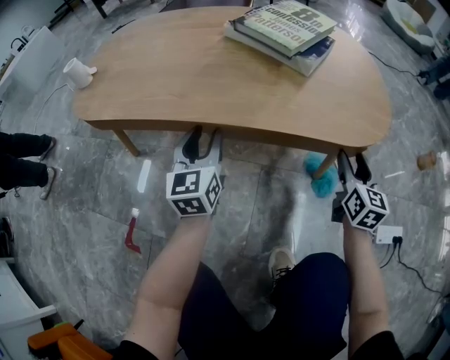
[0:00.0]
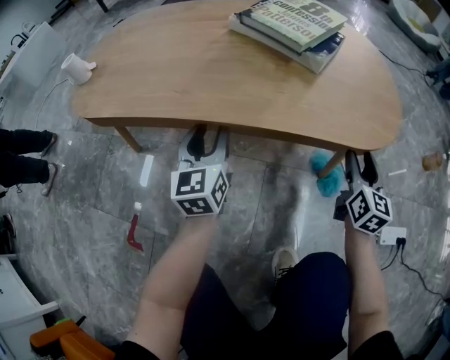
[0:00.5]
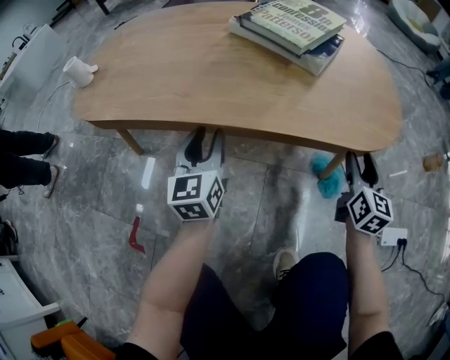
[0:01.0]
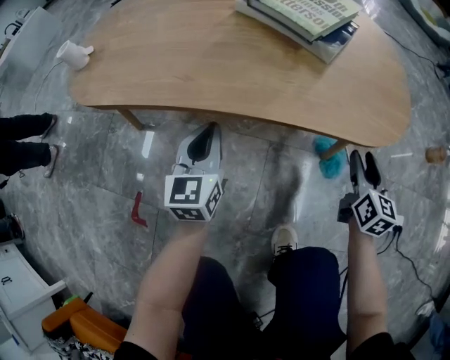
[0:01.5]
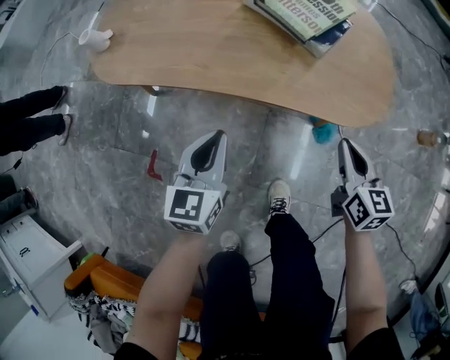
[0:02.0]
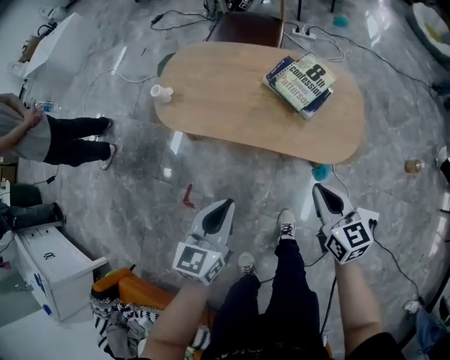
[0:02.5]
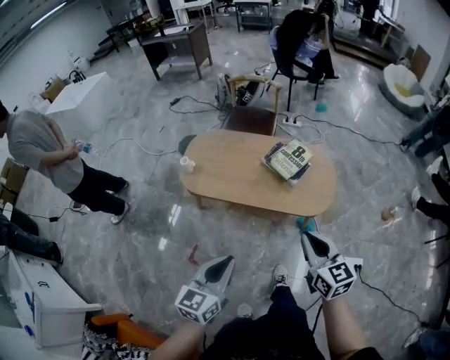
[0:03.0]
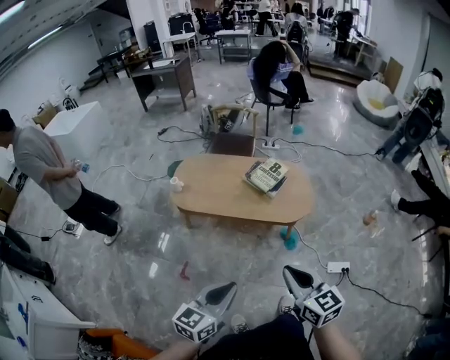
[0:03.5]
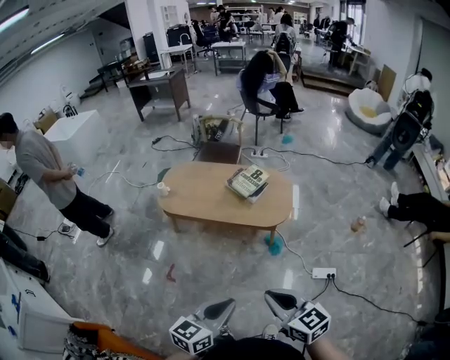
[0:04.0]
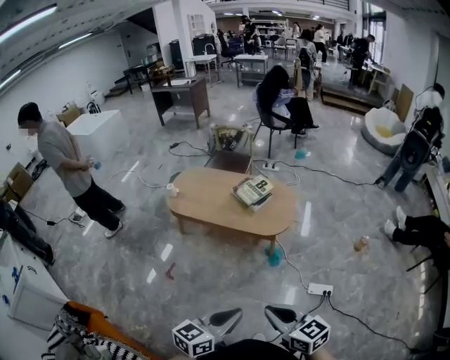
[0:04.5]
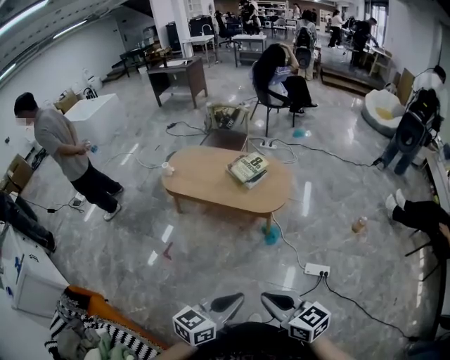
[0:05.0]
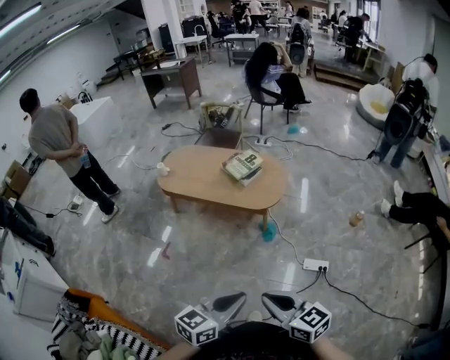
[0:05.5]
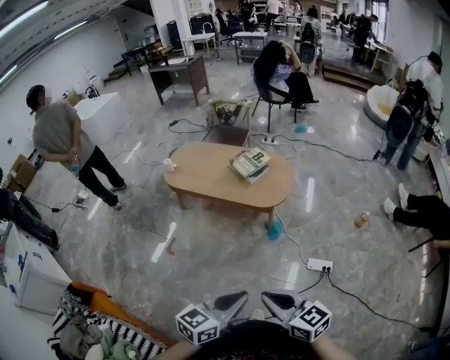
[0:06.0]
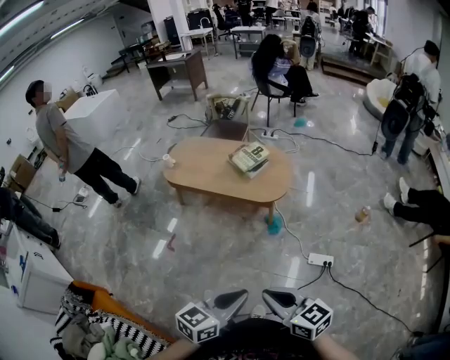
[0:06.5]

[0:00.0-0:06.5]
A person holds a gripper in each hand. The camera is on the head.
0:00.0 to 0:02.0: The left gripper heads upward and backward, covering about 20 cm, and closes up; the right gripper heads upward and to the left, covering some 15 cm, turns by roughly 20 degrees, and closes up.
0:02.0 to 0:04.5: The pair of grippers is taken backward, approximately 50 cm. The grippers both shift upward by some 50 cm. The right gripper rotates about 30 degrees; the left gripper turns by roughly 30 degrees.
0:04.5 to 0:06.5: The left gripper shifts approximately 5 cm to the right; the right gripper goes roughly 5 cm backward.

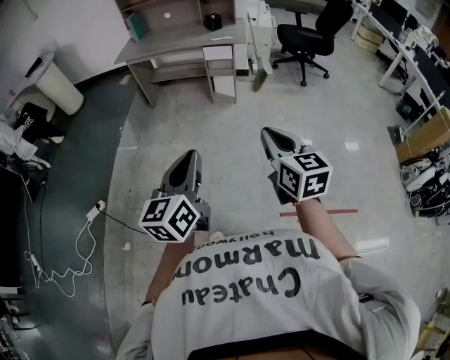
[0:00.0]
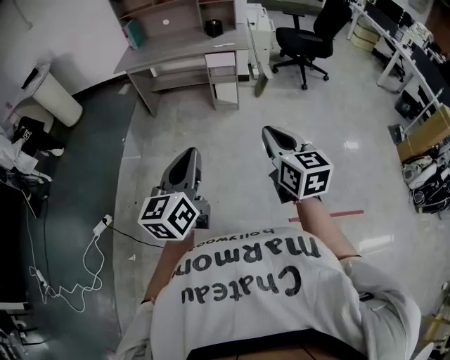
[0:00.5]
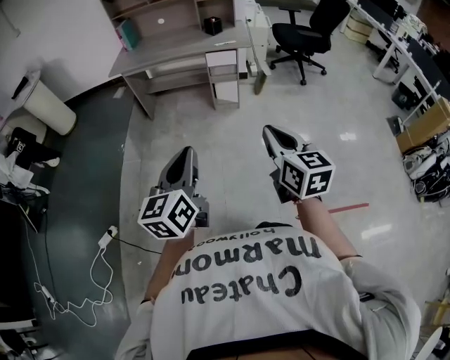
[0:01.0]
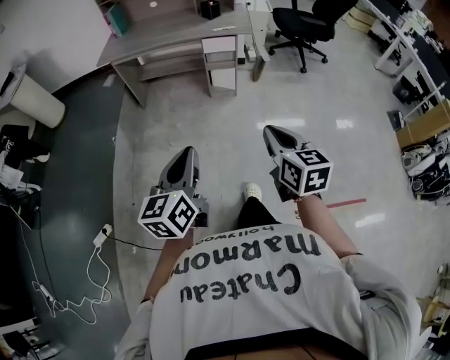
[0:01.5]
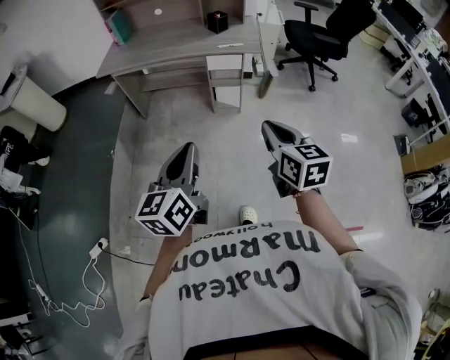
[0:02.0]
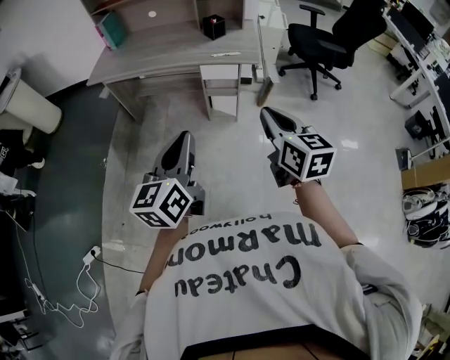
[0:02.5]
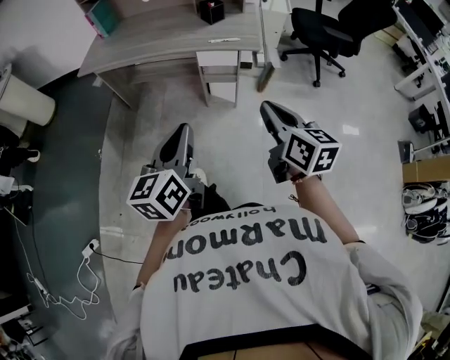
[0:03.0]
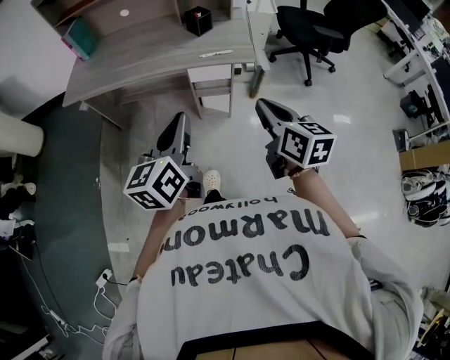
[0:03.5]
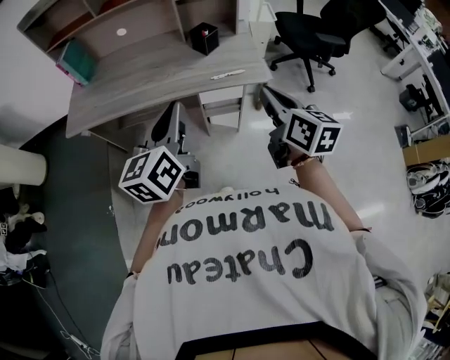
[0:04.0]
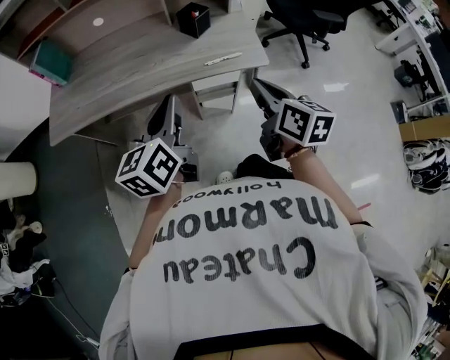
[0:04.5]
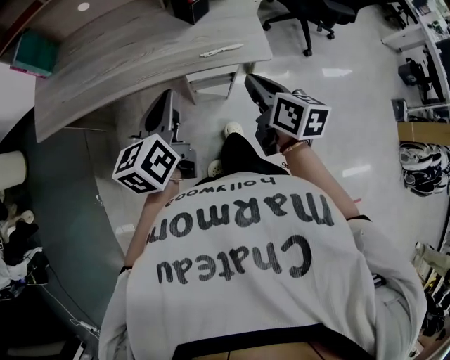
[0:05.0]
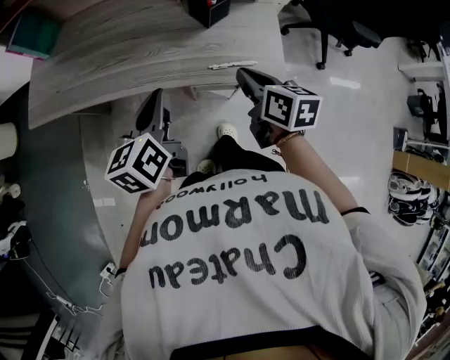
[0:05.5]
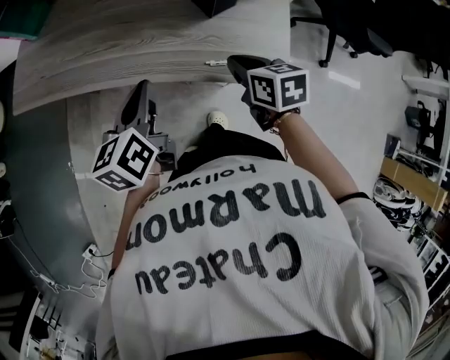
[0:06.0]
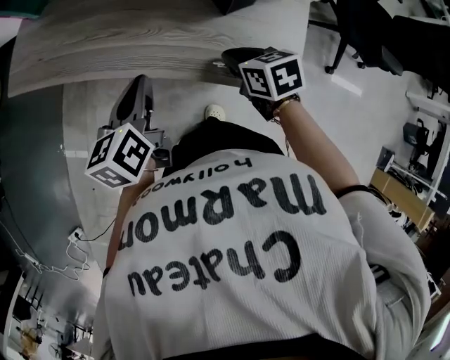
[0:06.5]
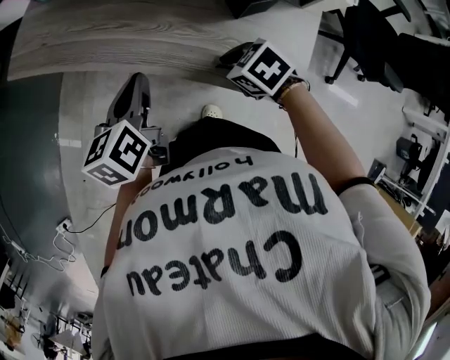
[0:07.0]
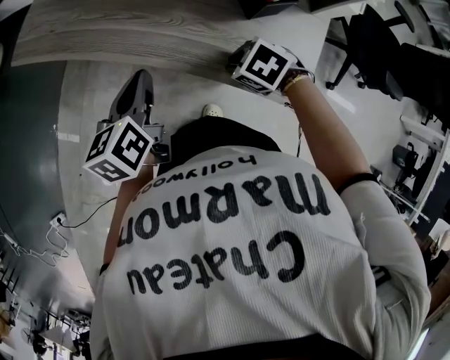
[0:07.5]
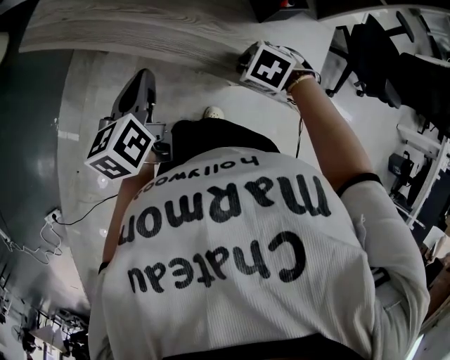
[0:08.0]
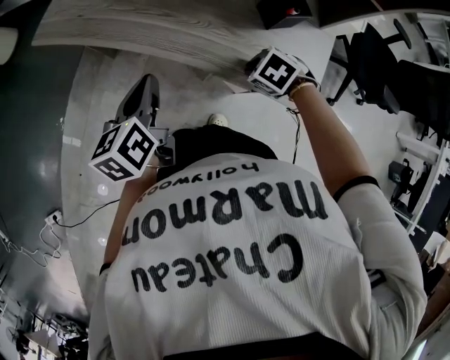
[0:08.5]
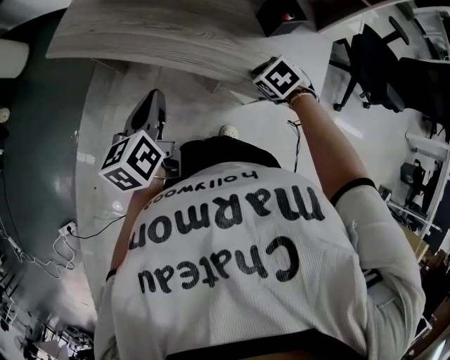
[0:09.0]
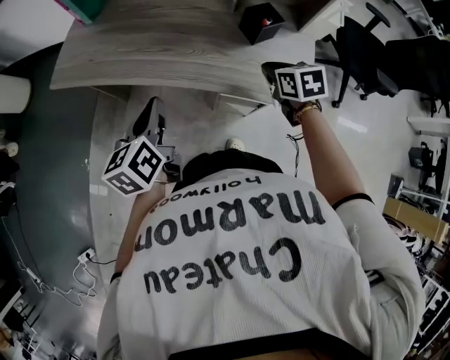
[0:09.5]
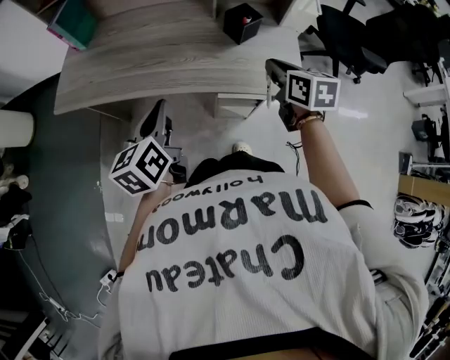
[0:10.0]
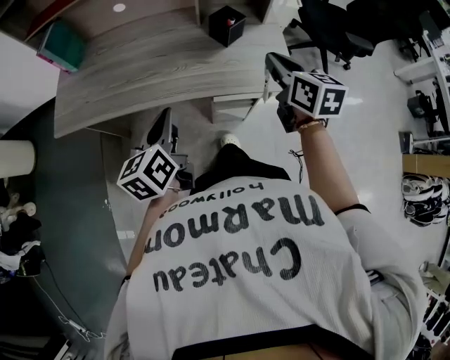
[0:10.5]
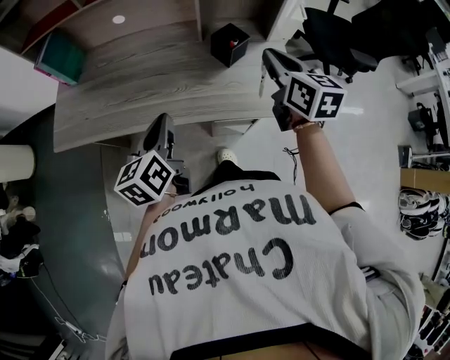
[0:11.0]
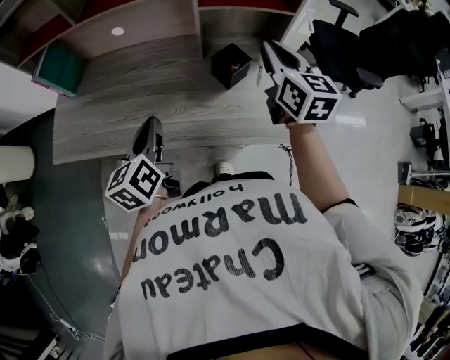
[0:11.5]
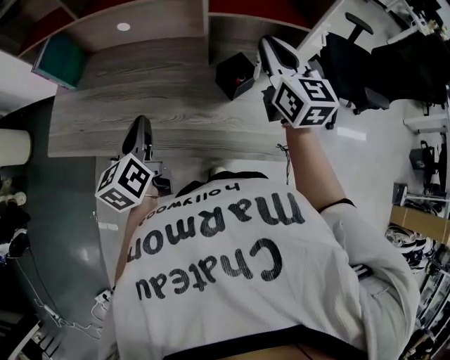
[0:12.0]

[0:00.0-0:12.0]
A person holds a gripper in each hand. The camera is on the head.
0:00.0 to 0:02.0: Both grippers travel together forward, approximately 30 cm.
0:02.0 to 0:04.0: The grippers both shift forward by roughly 40 cm.
0:04.0 to 0:06.0: Both grippers travel together forward and downward, approximately 25 cm. The right gripper swivels some 40 degrees, while the left gripper rotates approximately 30 degrees.
0:06.0 to 0:08.0: The left gripper moves some 10 cm, while the right gripper heads downward, covering approximately 5 cm, and tilts its fingers about 40 degrees downward.
0:08.0 to 0:10.0: The right gripper goes some 15 cm upward, and points its fingers roughly 50 degrees further upward. Meanwhile the left gripper shifts about 5 cm upward, and changes its angle by approximately 20 degrees.
0:10.0 to 0:12.0: The right gripper heads forward and upward, covering roughly 25 cm, and swivels approximately 30 degrees. The left gripper moves forward, approximately 15 cm.

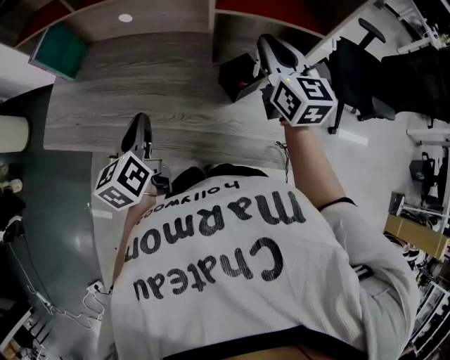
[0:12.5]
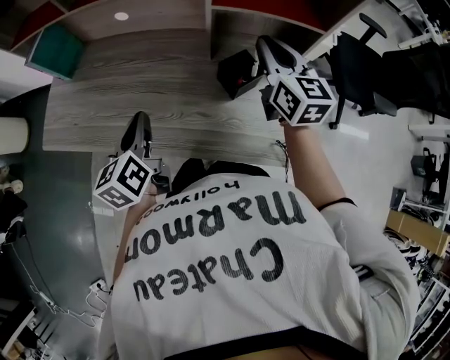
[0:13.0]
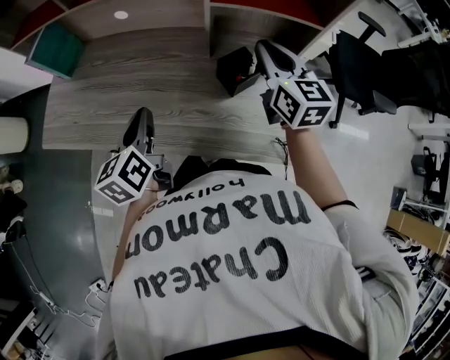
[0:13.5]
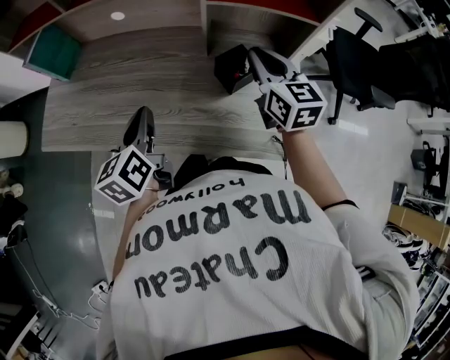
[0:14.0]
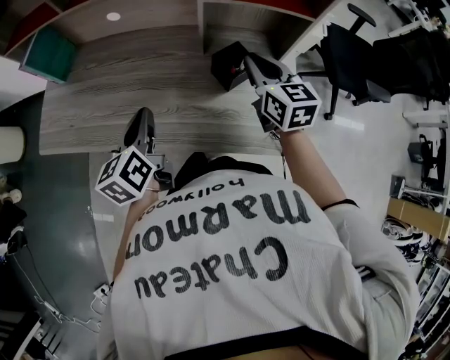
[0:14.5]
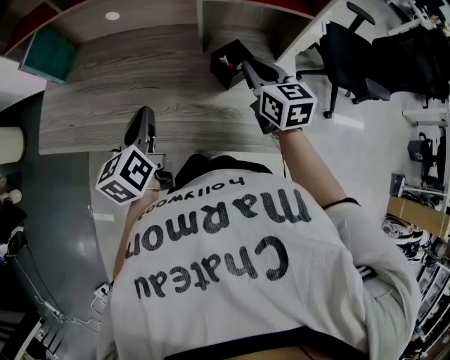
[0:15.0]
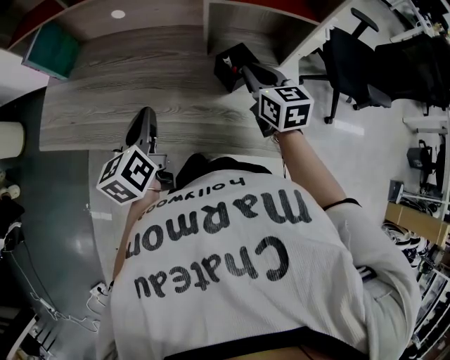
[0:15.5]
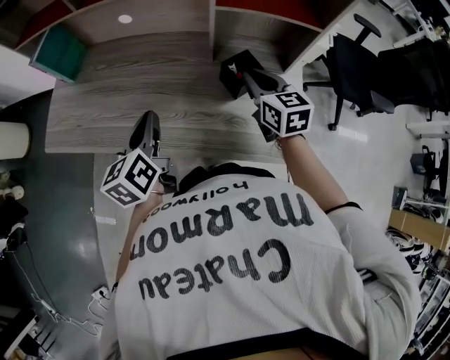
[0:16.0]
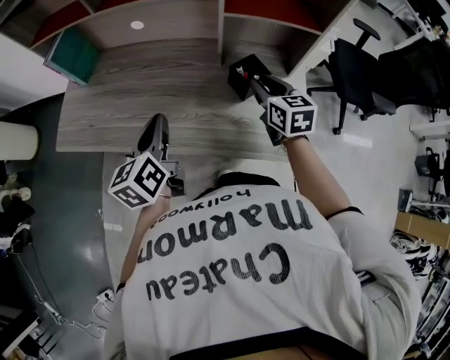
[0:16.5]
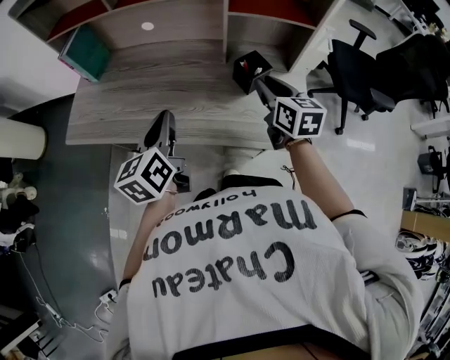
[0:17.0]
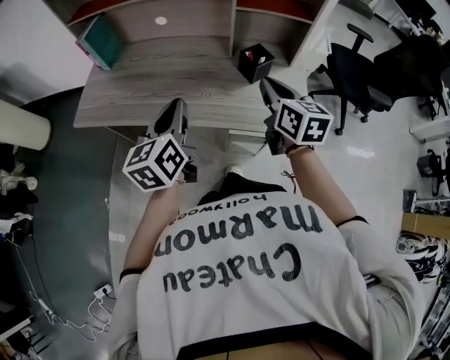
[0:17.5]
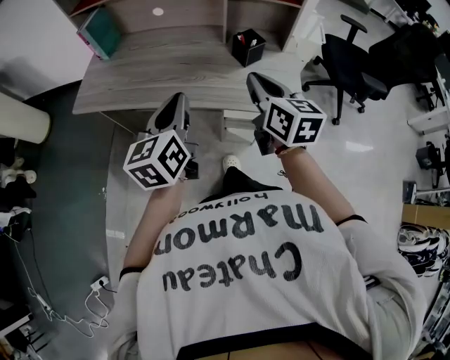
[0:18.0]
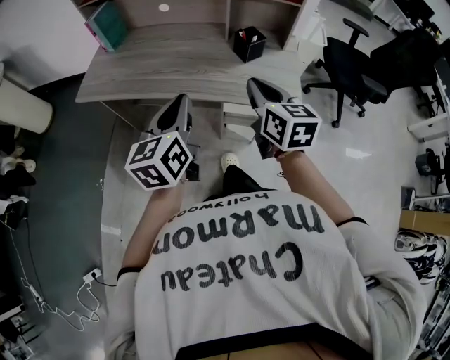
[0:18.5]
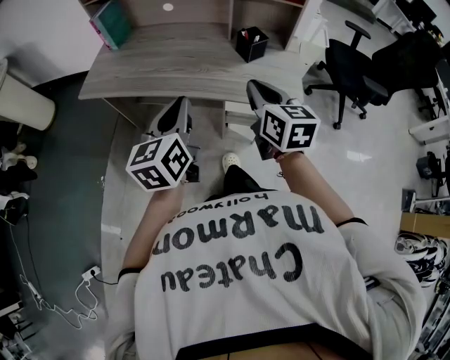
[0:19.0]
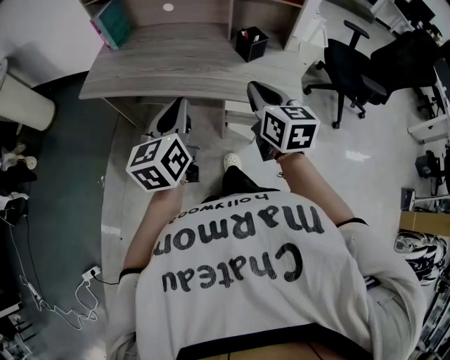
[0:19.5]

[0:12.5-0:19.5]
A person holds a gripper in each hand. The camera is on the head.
0:12.5 to 0:14.5: The right gripper is displaced downward by some 5 cm.
0:14.5 to 0:16.0: There are only small adjustments of the grippers.
0:16.0 to 0:17.5: Both grippers travel together backward and upward, about 15 cm.
0:17.5 to 0:19.5: The two grippers go approximately 10 cm backward.

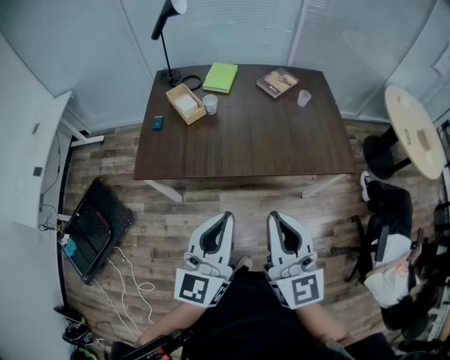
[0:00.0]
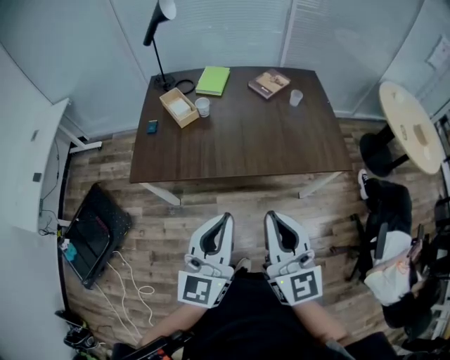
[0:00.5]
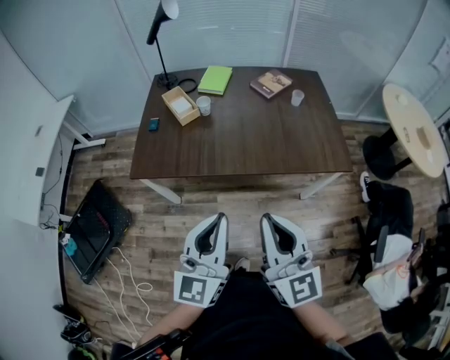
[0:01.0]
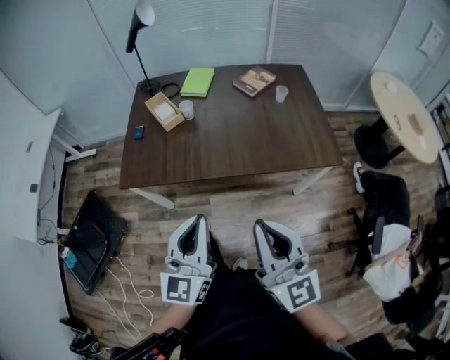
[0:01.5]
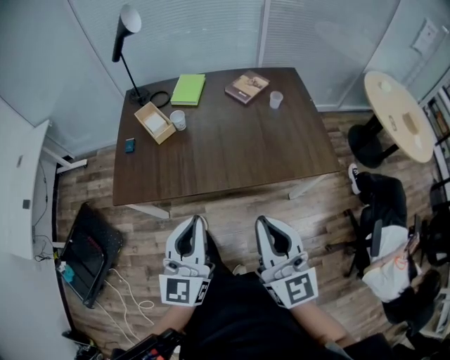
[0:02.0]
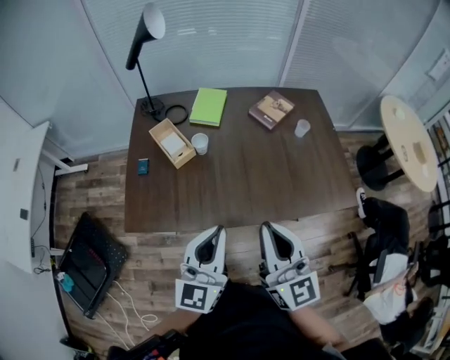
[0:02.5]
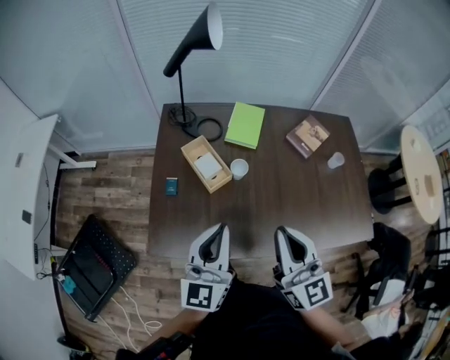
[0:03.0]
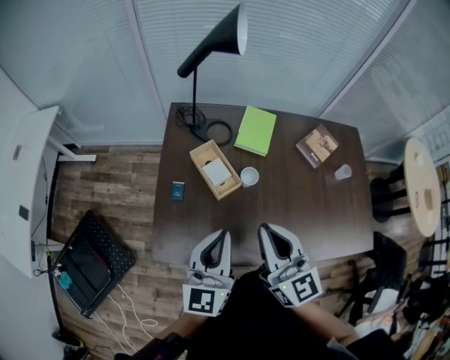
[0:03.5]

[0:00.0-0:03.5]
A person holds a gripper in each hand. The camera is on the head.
0:00.0 to 0:02.0: The right gripper heads to the right, covering some 5 cm. Meanwhile the left gripper moves forward, roughly 5 cm.
0:02.0 to 0:03.5: Both grippers move forward and to the left, approximately 40 cm.
